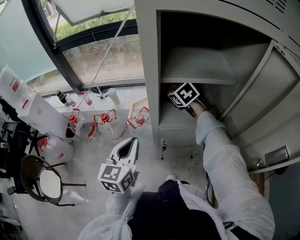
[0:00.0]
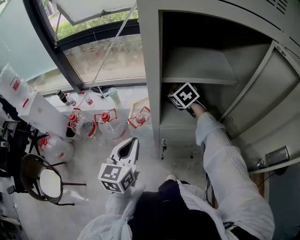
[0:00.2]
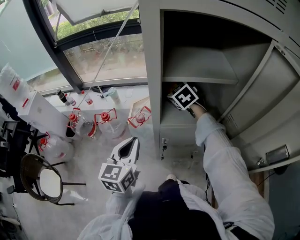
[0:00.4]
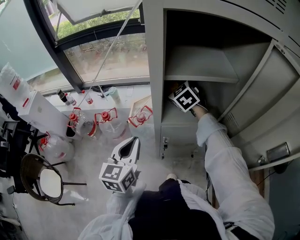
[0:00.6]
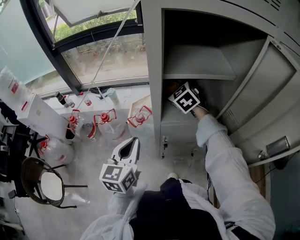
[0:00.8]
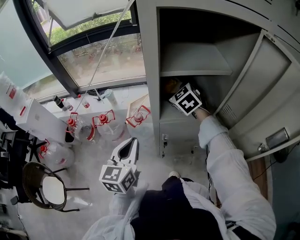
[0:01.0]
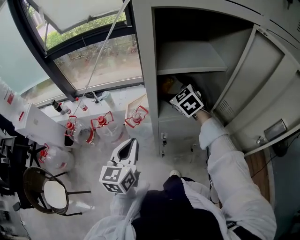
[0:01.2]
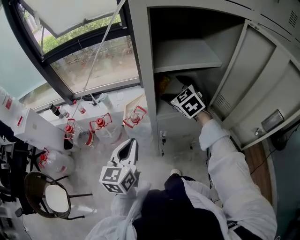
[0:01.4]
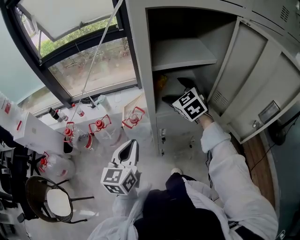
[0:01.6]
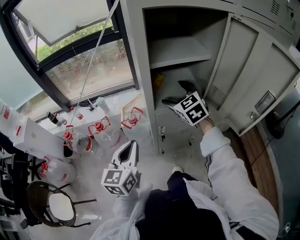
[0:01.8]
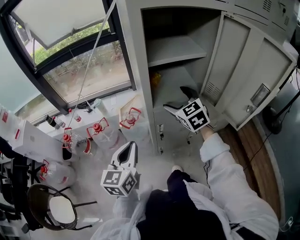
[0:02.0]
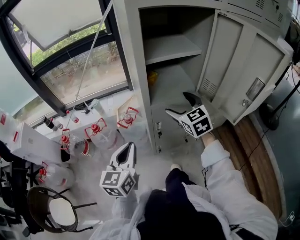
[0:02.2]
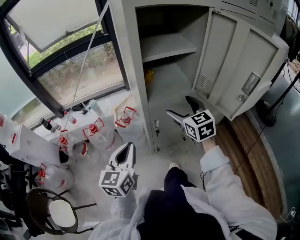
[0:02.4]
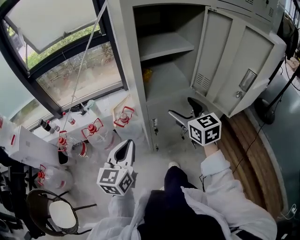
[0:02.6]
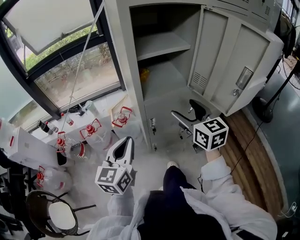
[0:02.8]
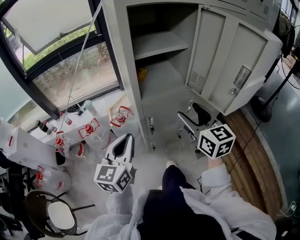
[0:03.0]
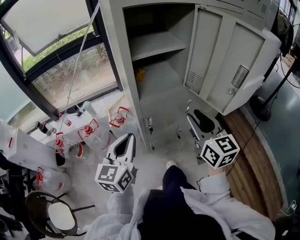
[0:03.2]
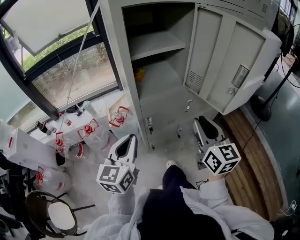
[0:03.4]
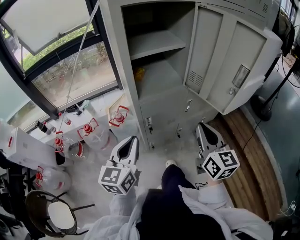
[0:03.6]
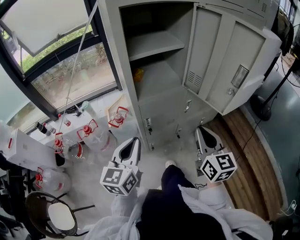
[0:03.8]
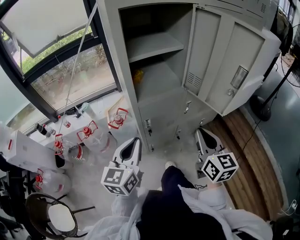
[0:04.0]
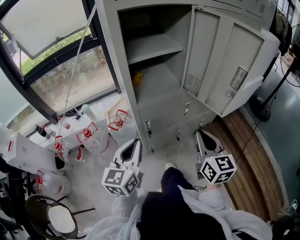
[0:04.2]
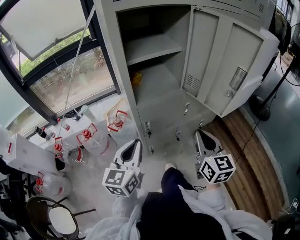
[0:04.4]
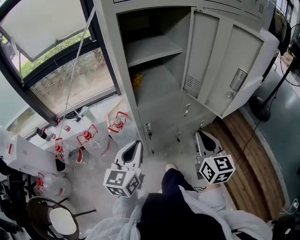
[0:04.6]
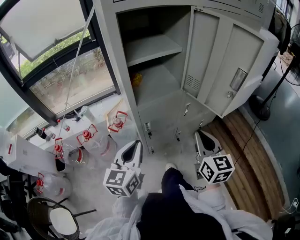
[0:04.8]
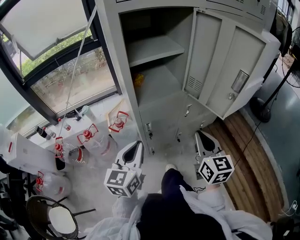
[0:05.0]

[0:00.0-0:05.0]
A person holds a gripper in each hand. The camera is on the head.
0:00.0 to 0:01.6: The right gripper travels backward by roughly 10 cm.
0:01.6 to 0:03.4: The right gripper moves backward and to the right, approximately 30 cm, rotates about 50 degrees, and closes its fingers, while the left gripper shifts some 5 cm backward.
0:03.4 to 0:05.0: There are only small adjustments of the grippers.

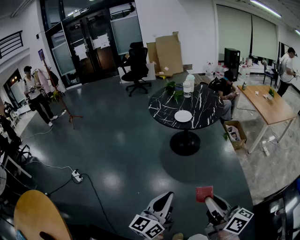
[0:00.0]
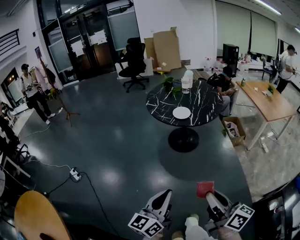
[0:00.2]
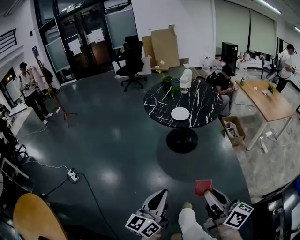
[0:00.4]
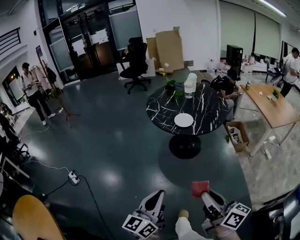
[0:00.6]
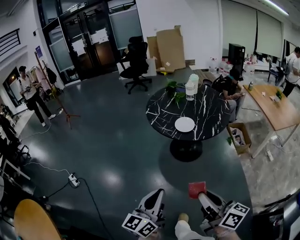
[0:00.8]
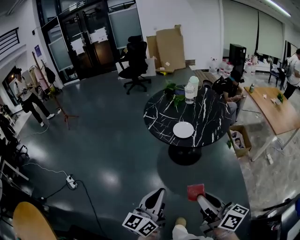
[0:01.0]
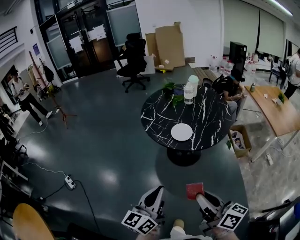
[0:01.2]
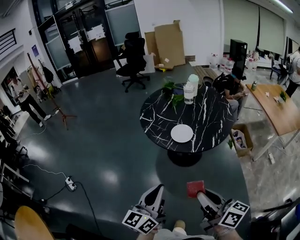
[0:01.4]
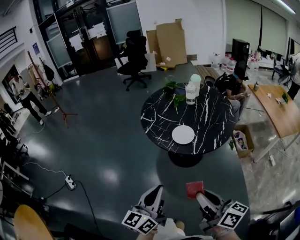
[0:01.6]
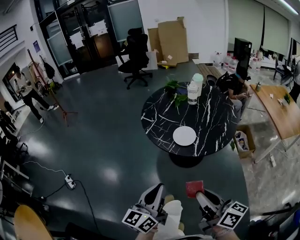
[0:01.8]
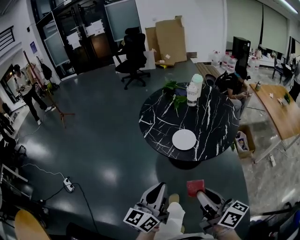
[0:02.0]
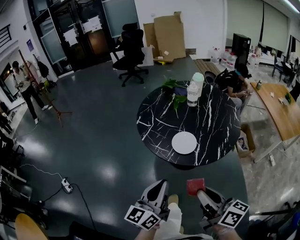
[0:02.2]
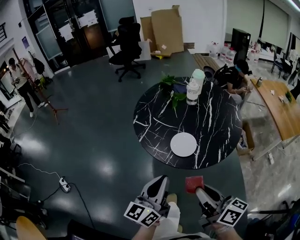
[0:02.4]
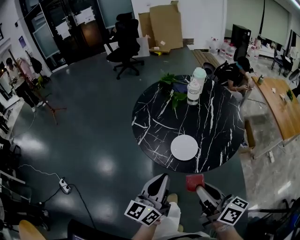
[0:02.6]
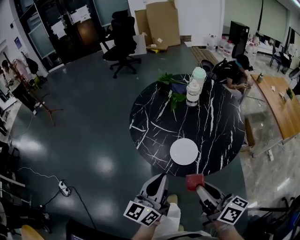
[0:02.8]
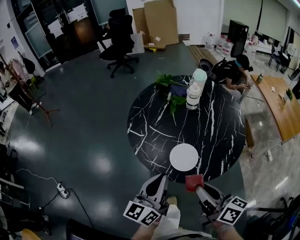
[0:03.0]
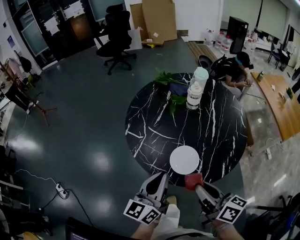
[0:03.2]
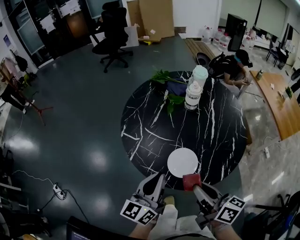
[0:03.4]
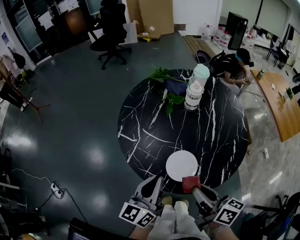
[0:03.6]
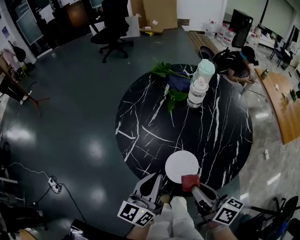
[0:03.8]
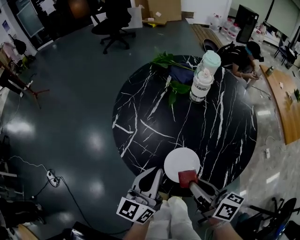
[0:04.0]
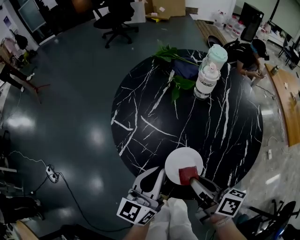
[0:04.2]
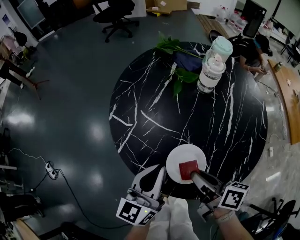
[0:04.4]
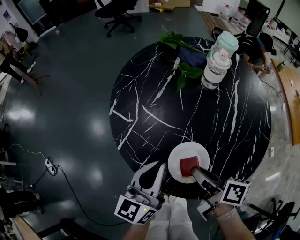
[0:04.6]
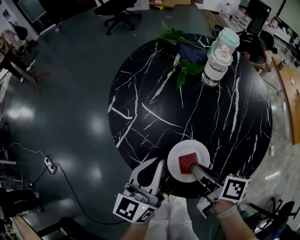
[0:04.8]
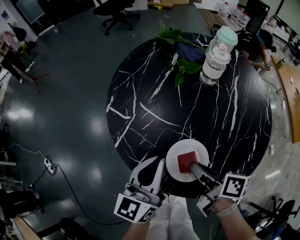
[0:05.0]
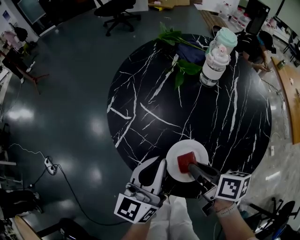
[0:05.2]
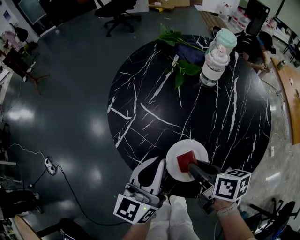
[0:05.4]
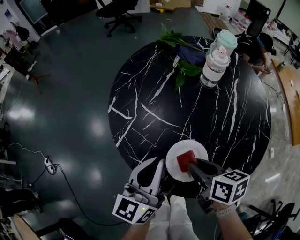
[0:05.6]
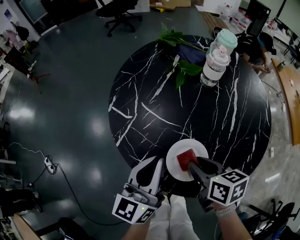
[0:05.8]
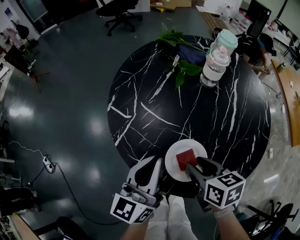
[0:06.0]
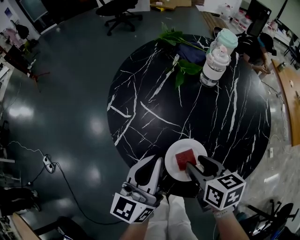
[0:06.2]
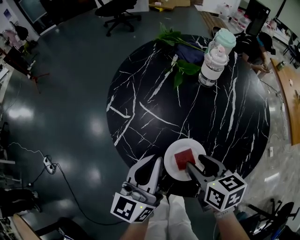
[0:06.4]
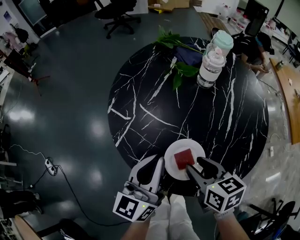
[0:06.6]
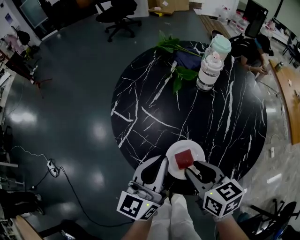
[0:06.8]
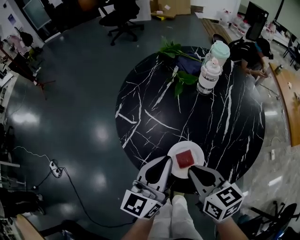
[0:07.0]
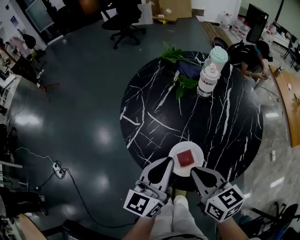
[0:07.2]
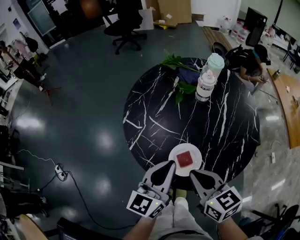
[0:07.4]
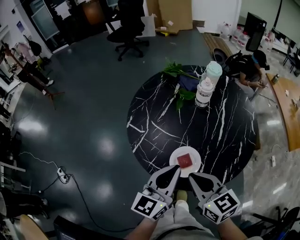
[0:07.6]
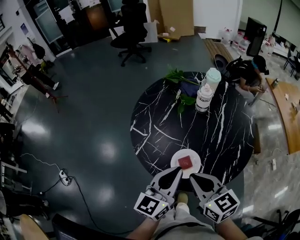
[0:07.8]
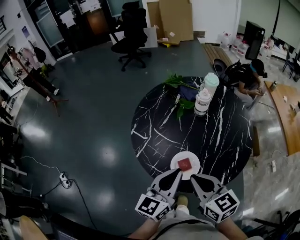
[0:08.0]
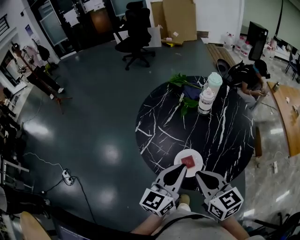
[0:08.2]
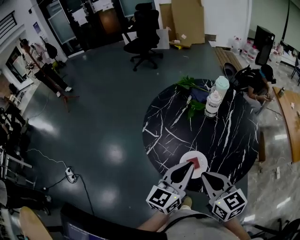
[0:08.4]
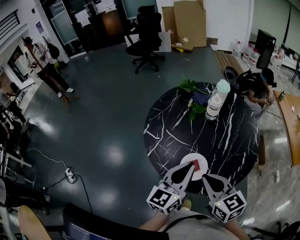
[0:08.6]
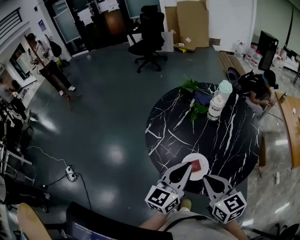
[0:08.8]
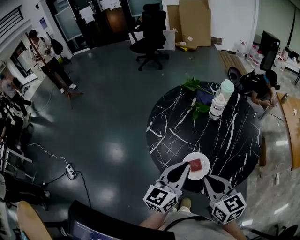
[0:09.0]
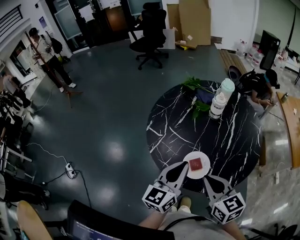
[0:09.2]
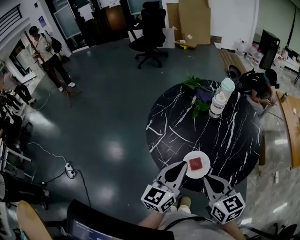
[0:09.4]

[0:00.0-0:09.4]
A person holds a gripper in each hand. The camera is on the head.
0:00.0 to 0:01.6: The two grippers go about 35 cm forward.
0:01.6 to 0:03.2: The two grippers go roughly 30 cm forward.
0:03.2 to 0:04.8: The right gripper heads downward and forward, covering approximately 20 cm, and changes its angle by some 30 degrees. The left gripper is displaced downward and forward by about 15 cm.
0:04.8 to 0:06.2: The right gripper rotates approximately 40 degrees, and opens.
0:06.2 to 0:07.8: The left gripper shifts approximately 15 cm upward, backward and to the right. Meanwhile the right gripper travels upward by about 20 cm, turns by roughly 30 degrees, and closes.
0:07.8 to 0:09.4: The grippers make only small movements.

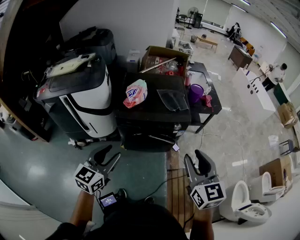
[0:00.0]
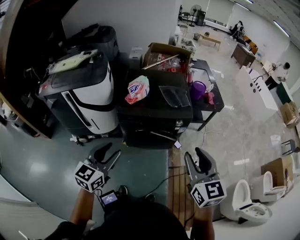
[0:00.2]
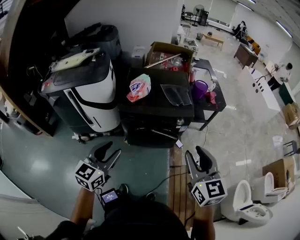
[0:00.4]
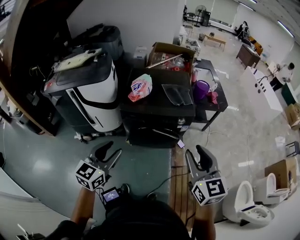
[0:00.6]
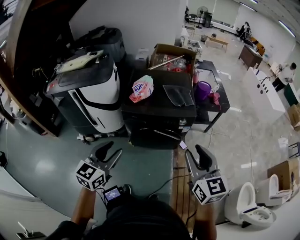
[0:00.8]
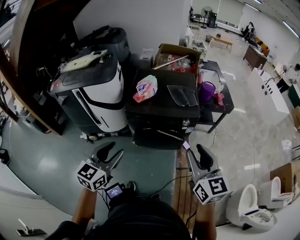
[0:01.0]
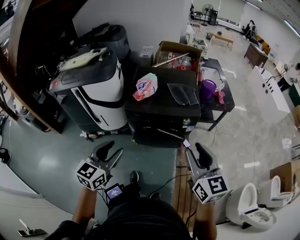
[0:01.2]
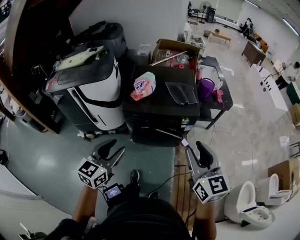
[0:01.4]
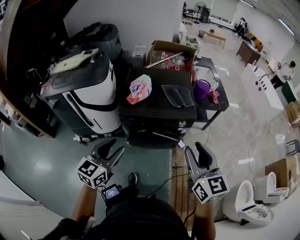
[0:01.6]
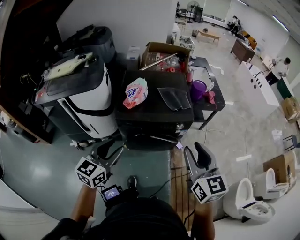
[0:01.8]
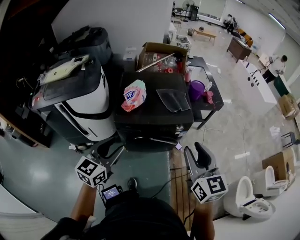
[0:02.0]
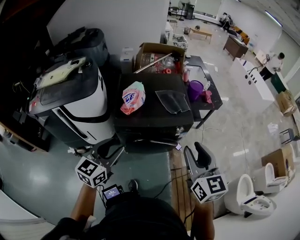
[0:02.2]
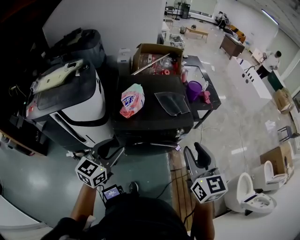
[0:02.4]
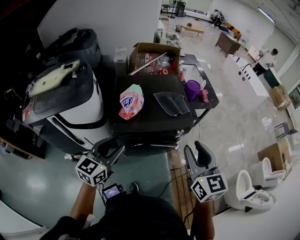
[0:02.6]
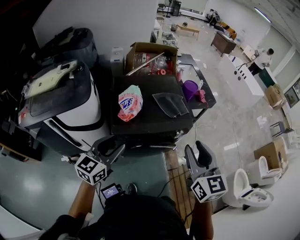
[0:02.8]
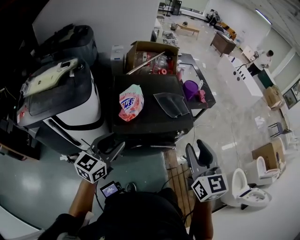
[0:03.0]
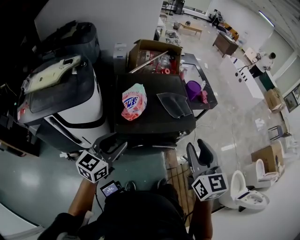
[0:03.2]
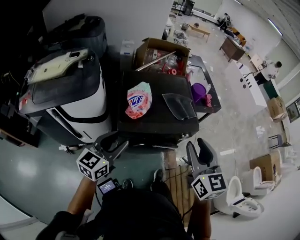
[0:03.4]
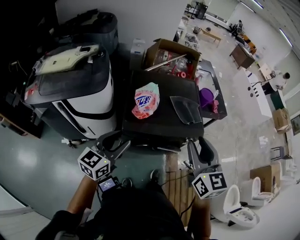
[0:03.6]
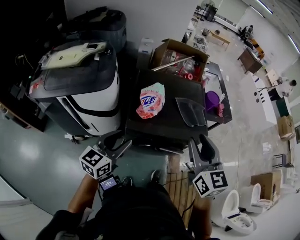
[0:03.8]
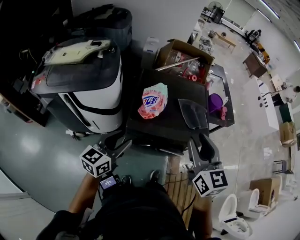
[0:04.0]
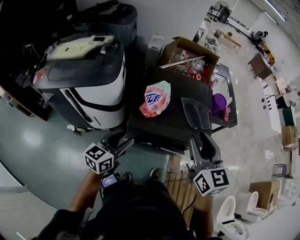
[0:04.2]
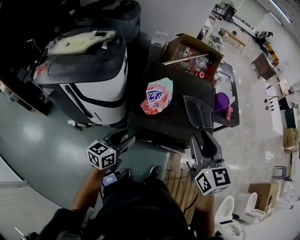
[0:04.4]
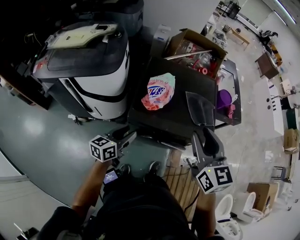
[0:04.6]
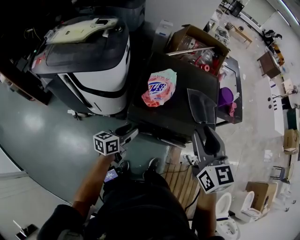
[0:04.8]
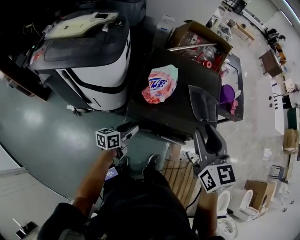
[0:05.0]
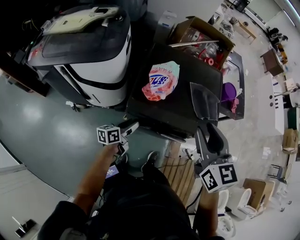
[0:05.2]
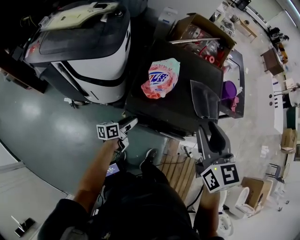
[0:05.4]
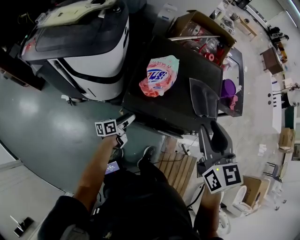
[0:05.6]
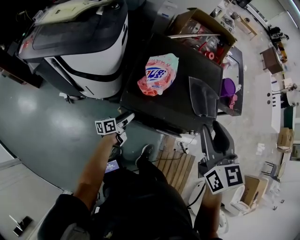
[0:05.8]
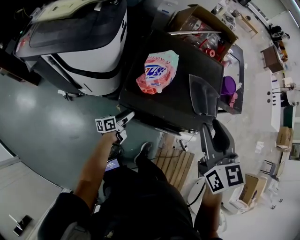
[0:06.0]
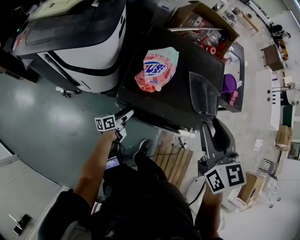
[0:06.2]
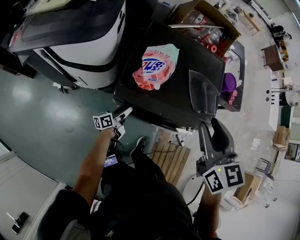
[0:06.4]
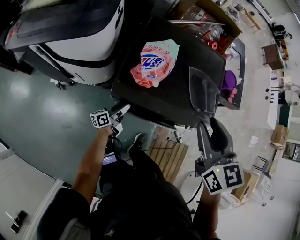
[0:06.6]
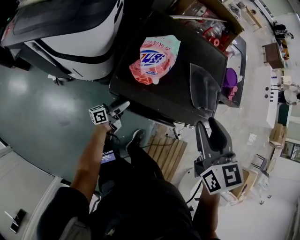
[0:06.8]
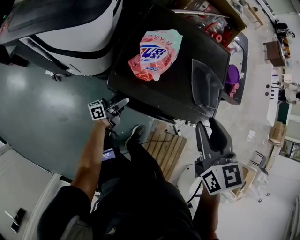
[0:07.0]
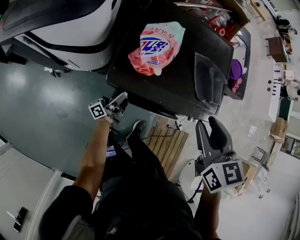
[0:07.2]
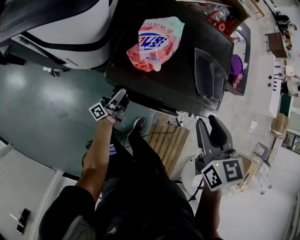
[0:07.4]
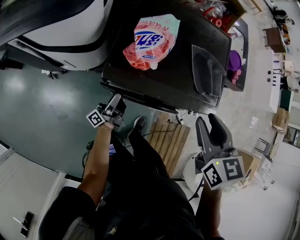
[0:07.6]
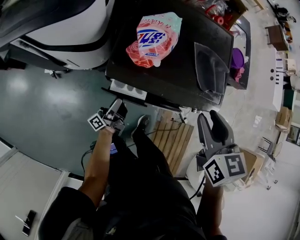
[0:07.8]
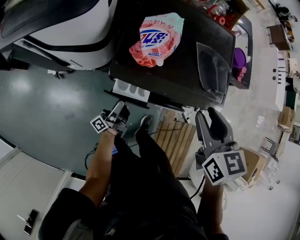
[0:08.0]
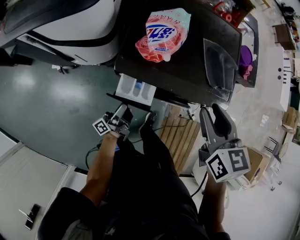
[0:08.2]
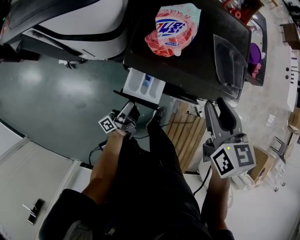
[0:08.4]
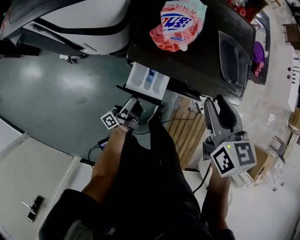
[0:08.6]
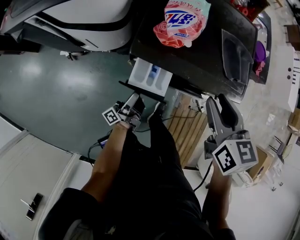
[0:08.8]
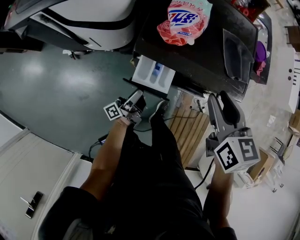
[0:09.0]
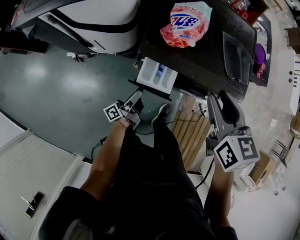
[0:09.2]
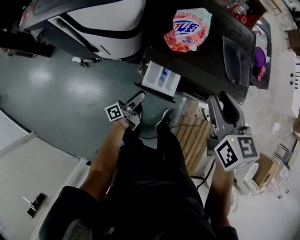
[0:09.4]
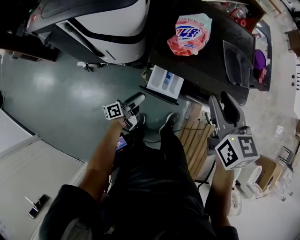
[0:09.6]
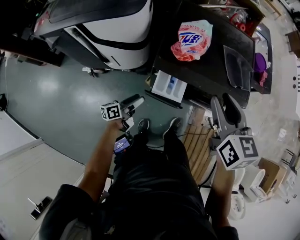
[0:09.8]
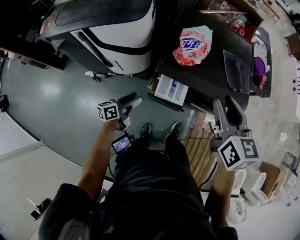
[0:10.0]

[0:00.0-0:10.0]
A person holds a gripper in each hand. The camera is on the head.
0:00.0 to 0:01.4: The grippers move only a little.
0:01.4 to 0:02.8: The two grippers go roughly 20 cm forward and to the left.
0:02.8 to 0:04.2: The left gripper moves downward, about 5 cm, and changes its angle by about 20 degrees. Meanwhile the right gripper shifts some 15 cm forward and to the left.
0:04.2 to 0:05.8: The right gripper heads forward, covering roughly 5 cm, while the left gripper goes approximately 30 cm downward, and rolls counterclockwise, seen from behind, by roughly 50 degrees.
0:05.8 to 0:07.2: The right gripper heads downward, covering about 10 cm; the left gripper points its fingers about 30 degrees further upward, and opens up.
0:07.2 to 0:08.6: The left gripper heads backward, covering some 10 cm. The right gripper shifts by roughly 5 cm.
0:08.6 to 0:10.0: The left gripper moves to the left and upward, some 15 cm, and points its fingers about 30 degrees further downward; the right gripper moves upward, about 10 cm.
